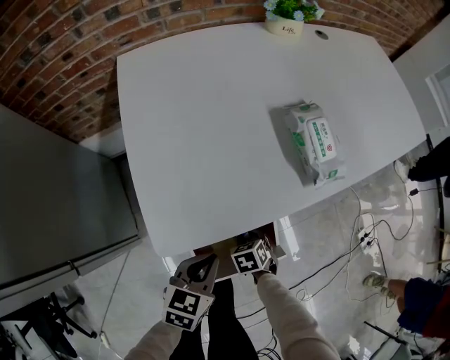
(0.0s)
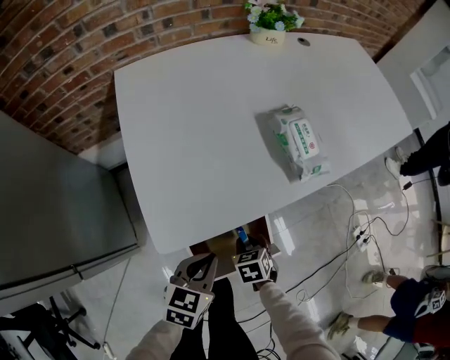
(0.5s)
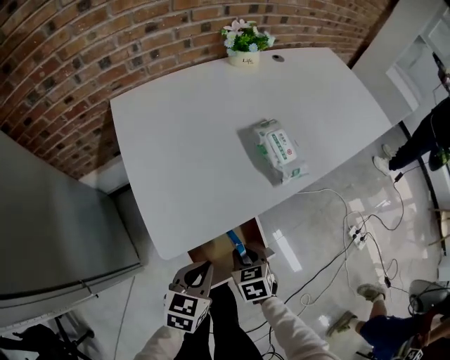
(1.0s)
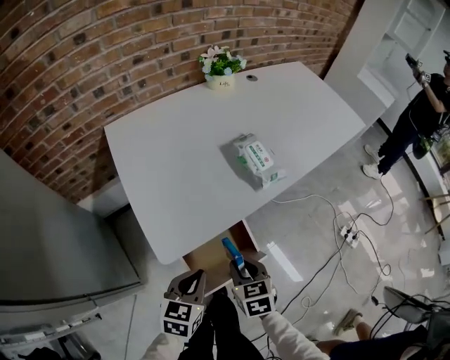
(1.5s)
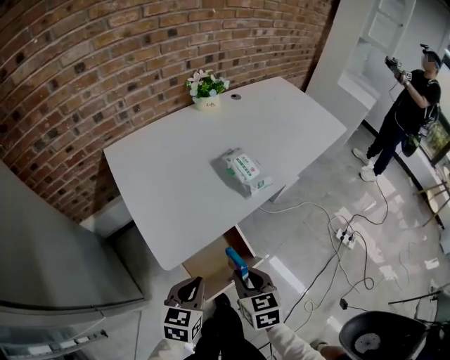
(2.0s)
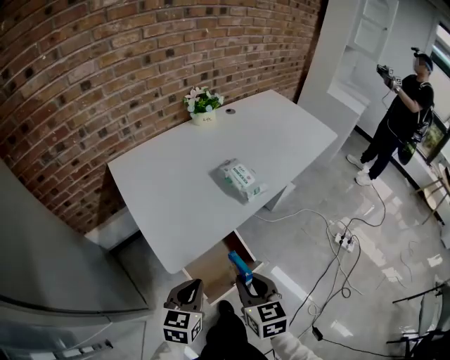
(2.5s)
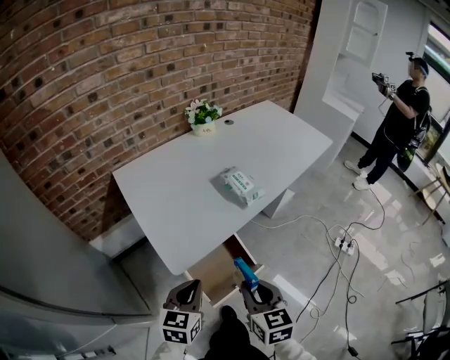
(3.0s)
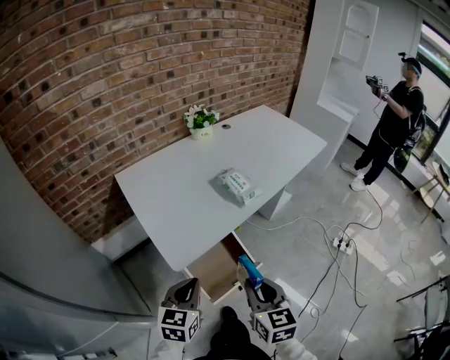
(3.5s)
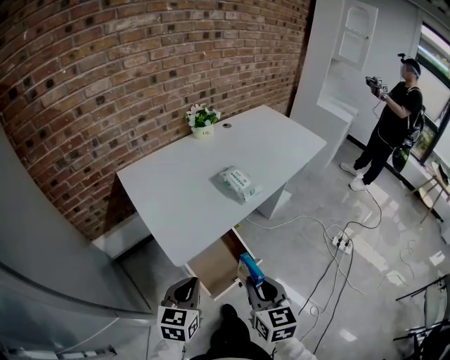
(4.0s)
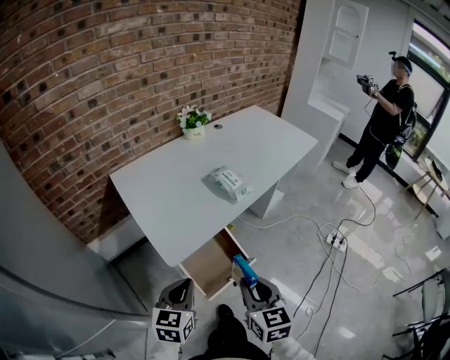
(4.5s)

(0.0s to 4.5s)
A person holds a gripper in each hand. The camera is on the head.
0.0s - 2.0s: The left gripper moves upward and backward, roughly 15 cm, while the right gripper travels upward by some 30 cm, and angles its fingers upward, by approximately 30 degrees.
2.0s - 4.5s: The grippers both shift upward and backward by roughly 15 cm.

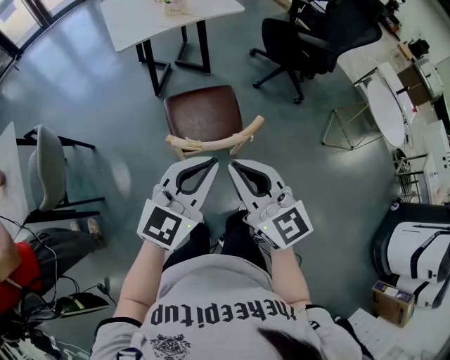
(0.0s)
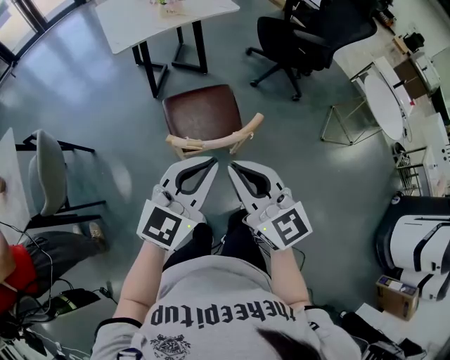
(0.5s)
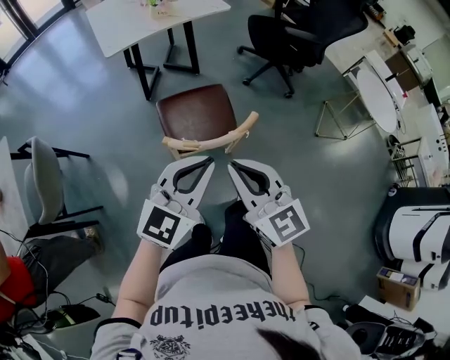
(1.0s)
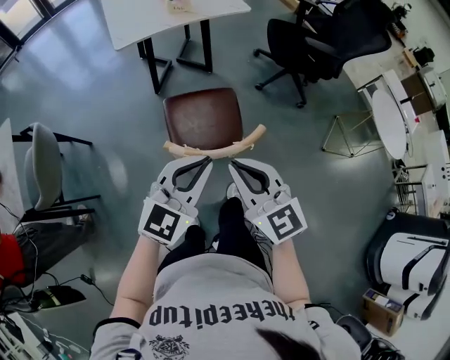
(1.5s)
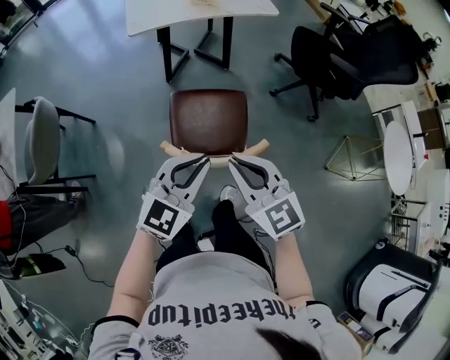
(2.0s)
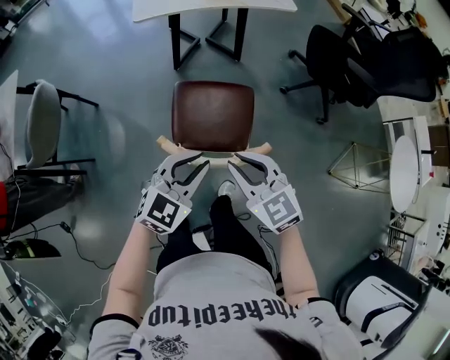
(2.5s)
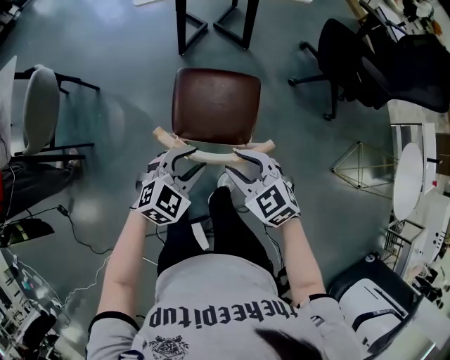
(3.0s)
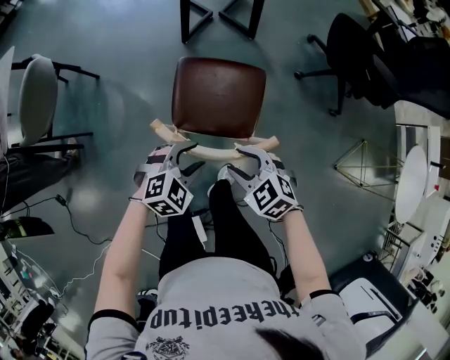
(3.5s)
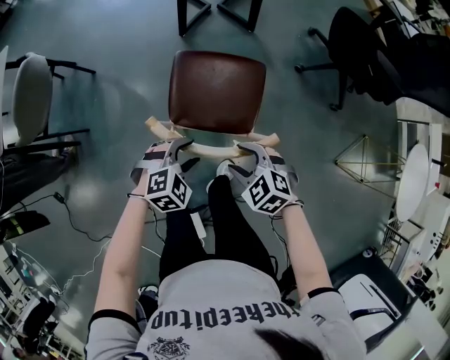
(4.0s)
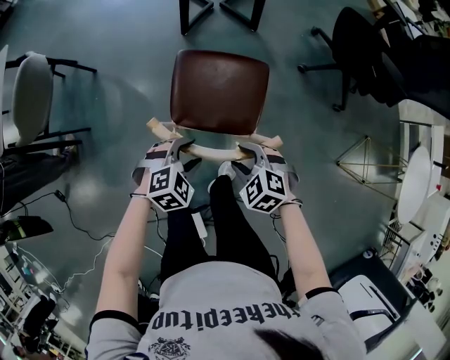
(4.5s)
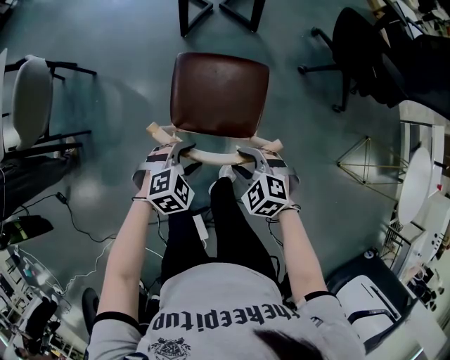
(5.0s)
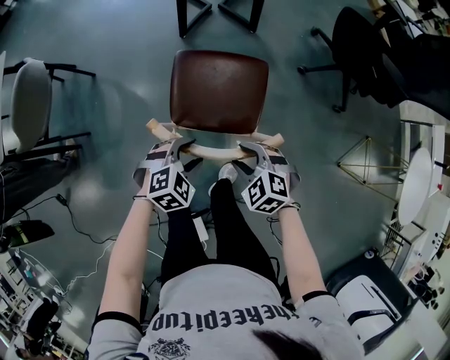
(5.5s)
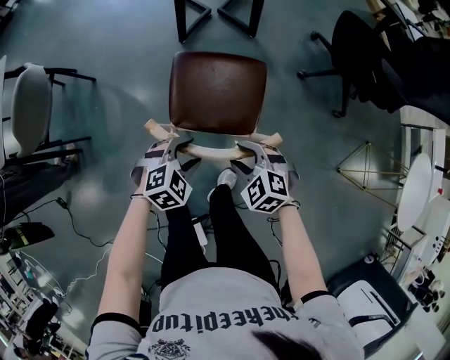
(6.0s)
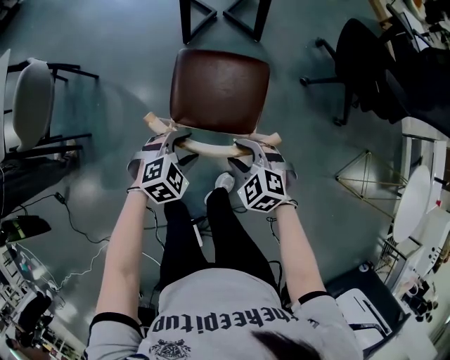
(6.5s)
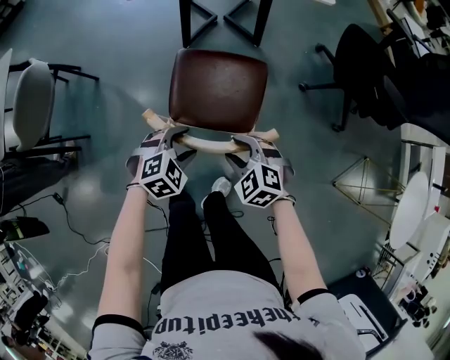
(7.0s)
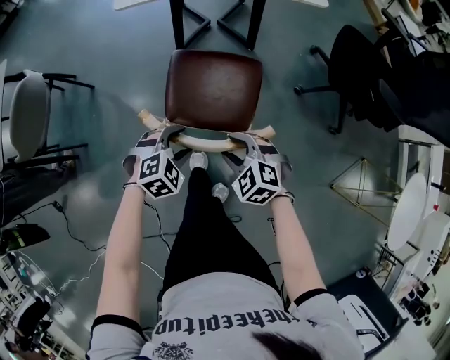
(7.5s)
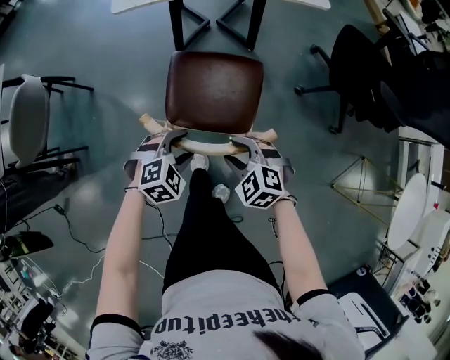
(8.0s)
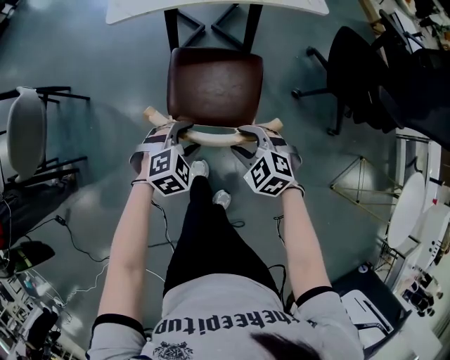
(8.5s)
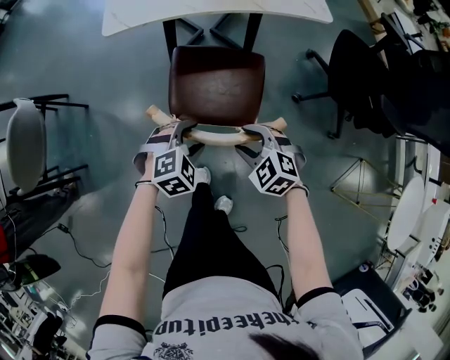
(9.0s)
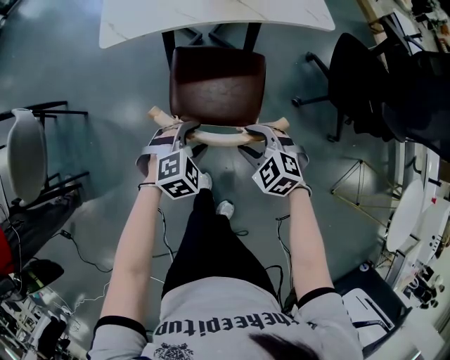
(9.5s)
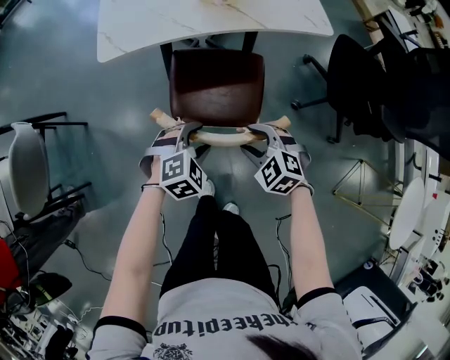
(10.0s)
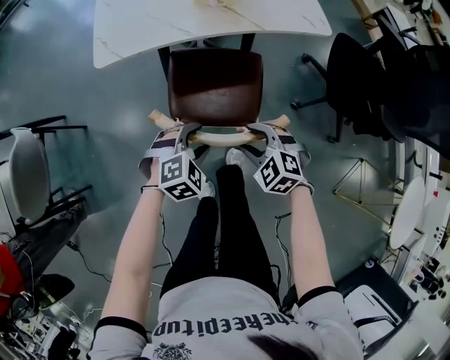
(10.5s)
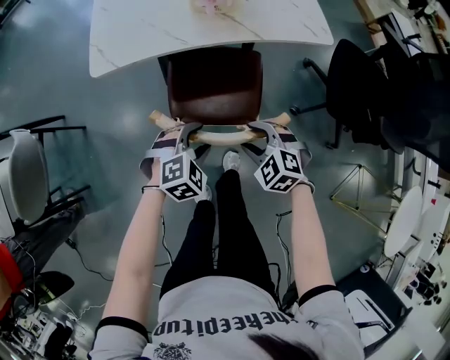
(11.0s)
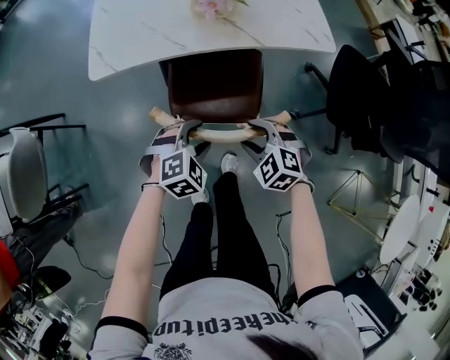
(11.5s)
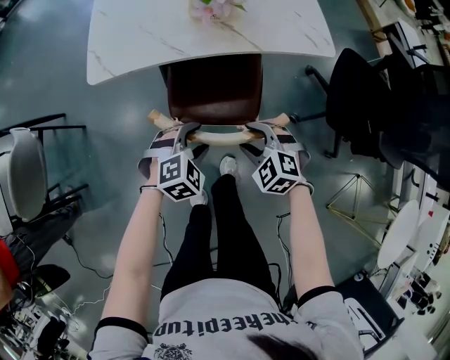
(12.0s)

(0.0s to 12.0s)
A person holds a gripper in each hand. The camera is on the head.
0.0s - 2.0s: The two grippers go roughly 15 cm forward and downward. The right gripper turns by approximately 20 degrees.
2.0s - 4.0s: The two grippers go some 25 cm downward. The left gripper points its fingers some 40 degrees further downward, and opens its fingers. Meanwhile the right gripper angles its fingers downward, by about 40 degrees, and opens.
4.0s - 6.0s: The two grippers go roughly 5 cm forward.
6.0s - 8.0s: The two grippers go about 10 cm forward.
8.0s - 10.0s: Both grippers move forward, some 20 cm.
10.0s - 12.0s: The grippers both shift forward by about 10 cm.

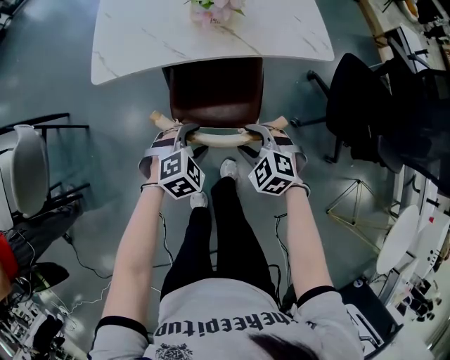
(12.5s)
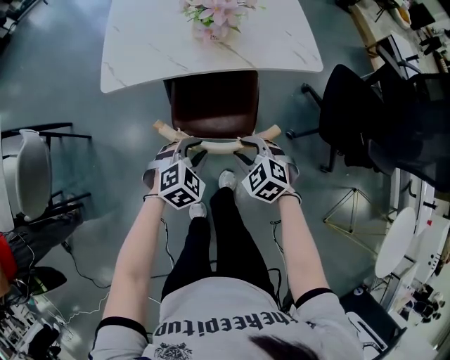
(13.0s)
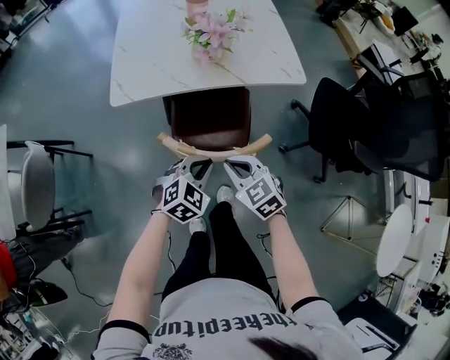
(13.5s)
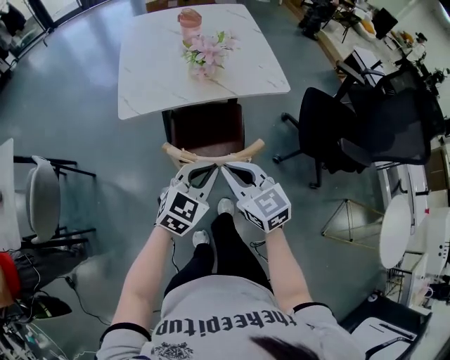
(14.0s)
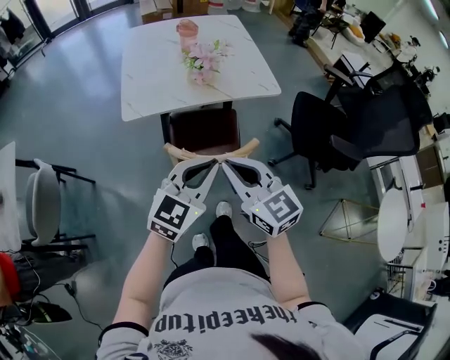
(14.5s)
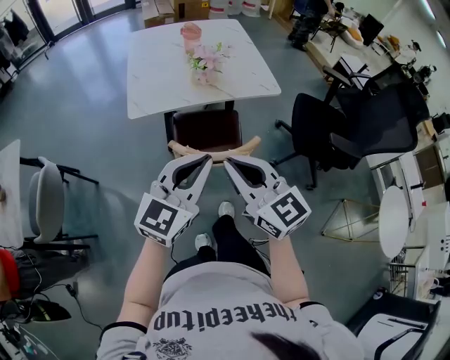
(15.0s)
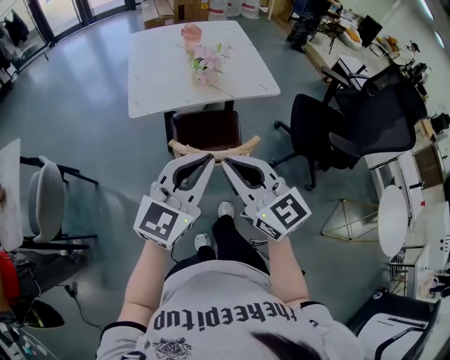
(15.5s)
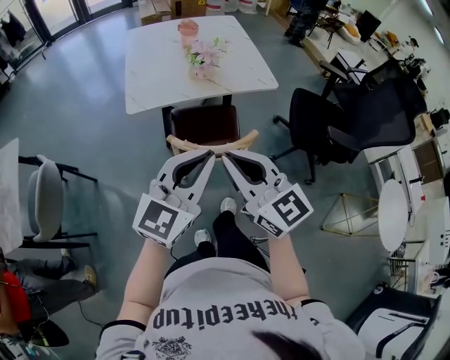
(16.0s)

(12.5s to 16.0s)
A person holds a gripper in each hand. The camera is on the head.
12.5s - 14.5s: The two grippers go approximately 30 cm upward. The left gripper tips its fingers upward by roughly 50 degrees, and closes up. Meanwhile the right gripper points its fingers roughly 50 degrees further upward, and closes up.
14.5s - 16.0s: Both grippers travel together upward and backward, roughly 10 cm.

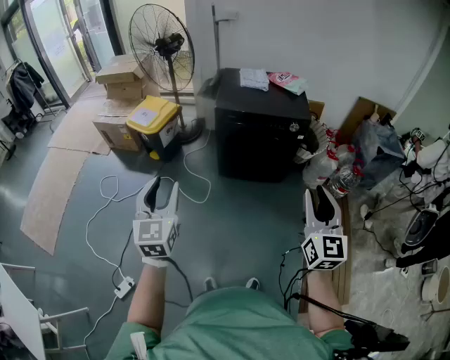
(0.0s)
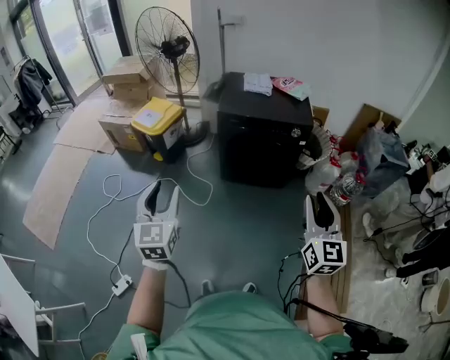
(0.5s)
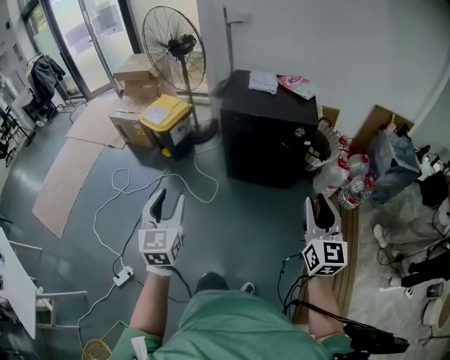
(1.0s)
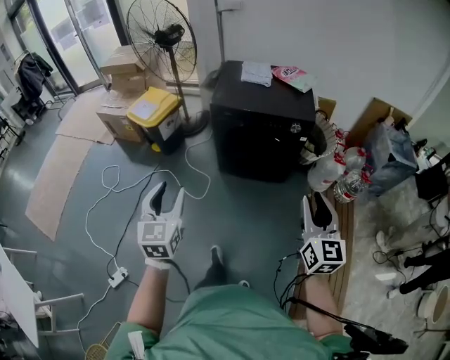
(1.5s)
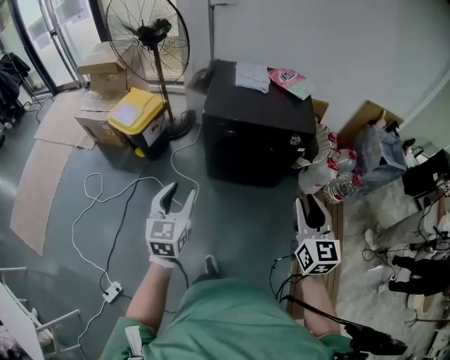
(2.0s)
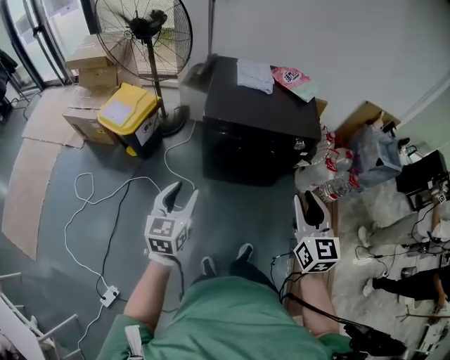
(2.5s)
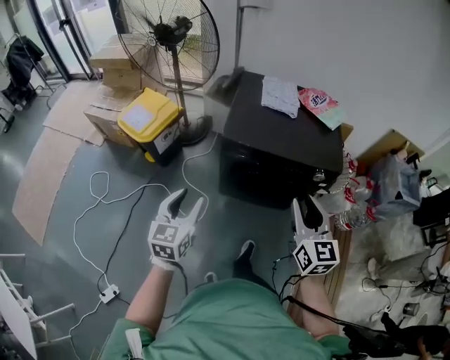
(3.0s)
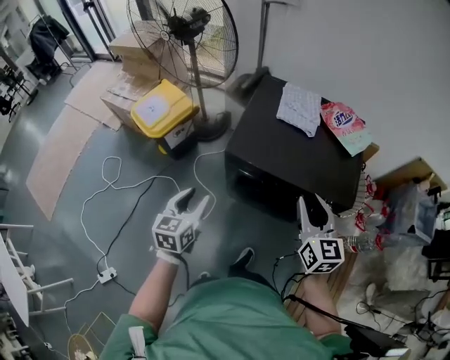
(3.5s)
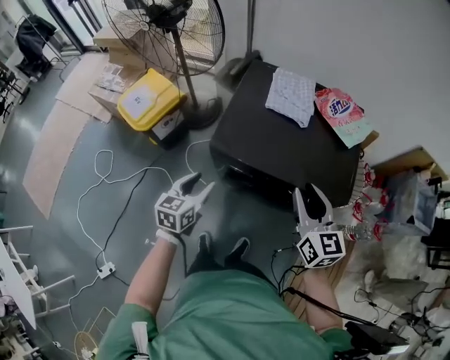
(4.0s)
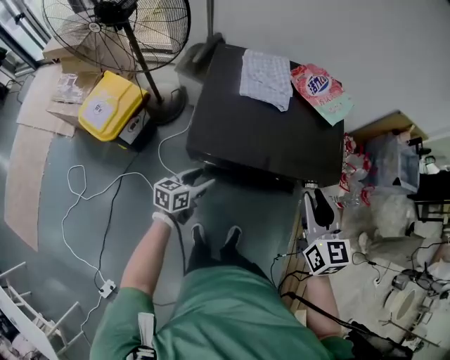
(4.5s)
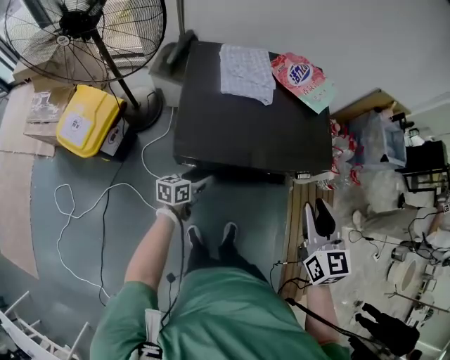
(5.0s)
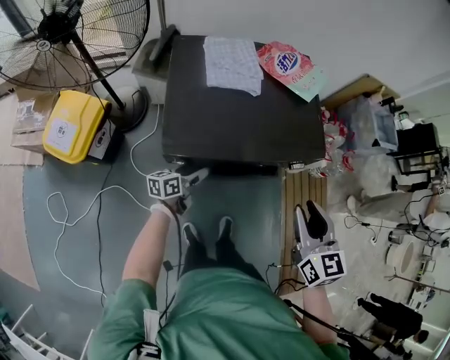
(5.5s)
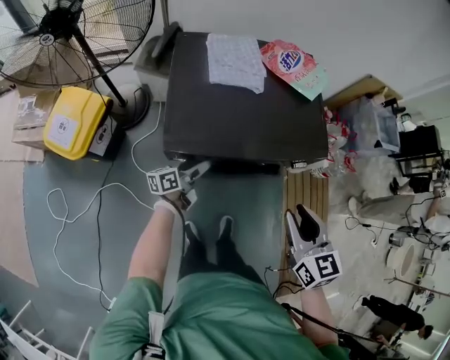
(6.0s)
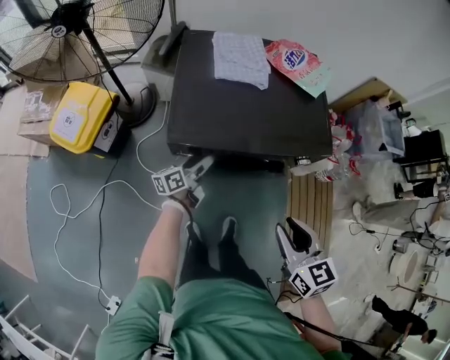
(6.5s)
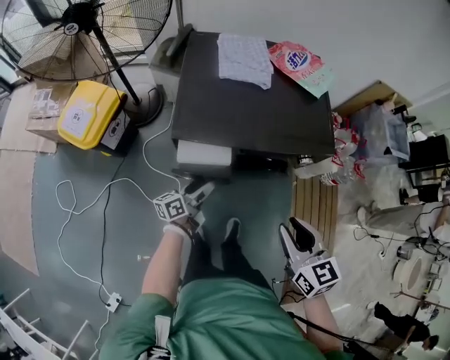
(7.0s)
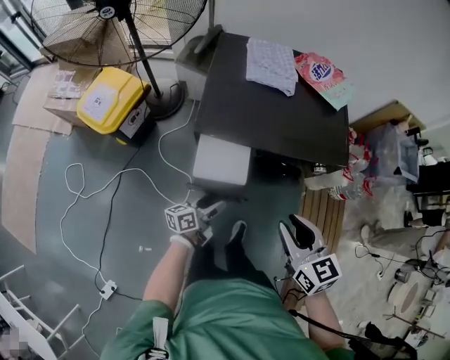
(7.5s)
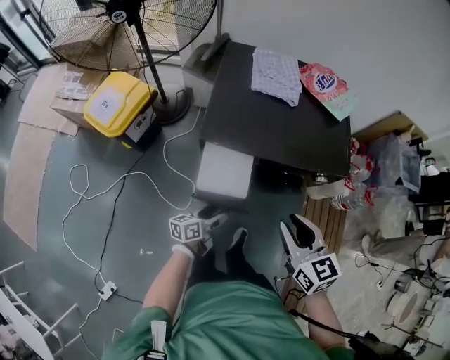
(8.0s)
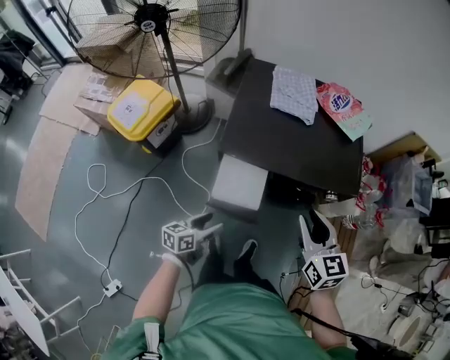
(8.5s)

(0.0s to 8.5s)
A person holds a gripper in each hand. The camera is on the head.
0.0s - 2.0s: The left gripper heads forward, downward and to the right, covering roughly 25 cm, while the right gripper travels forward by some 20 cm.
2.0s - 4.0s: Both grippers travel together forward, approximately 40 cm. The right gripper turns by roughly 20 degrees.
4.0s - 6.5s: The left gripper travels downward by about 15 cm, and rotates approximately 50 degrees. Meanwhile the right gripper ends up about 15 cm from where it was, and swivels about 20 degrees.
6.5s - 8.5s: The left gripper shifts approximately 20 cm backward, and rotates approximately 20 degrees. Meanwhile the right gripper goes approximately 5 cm forward.
